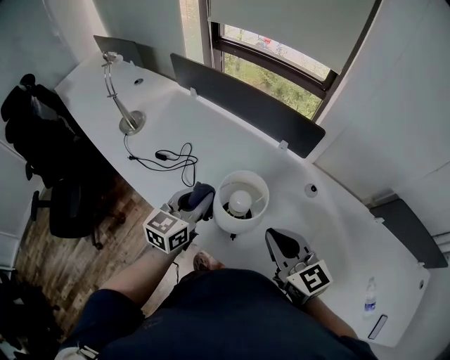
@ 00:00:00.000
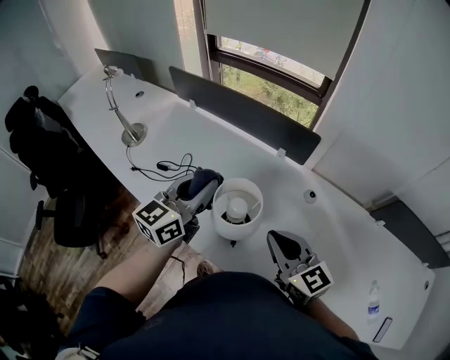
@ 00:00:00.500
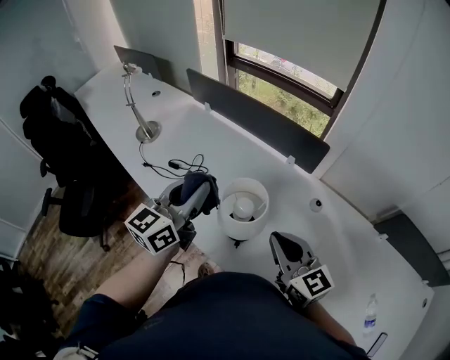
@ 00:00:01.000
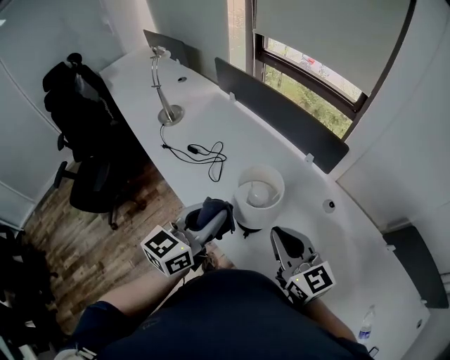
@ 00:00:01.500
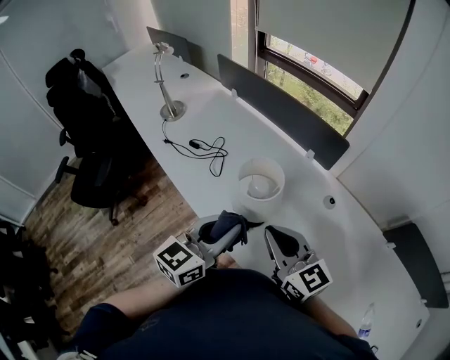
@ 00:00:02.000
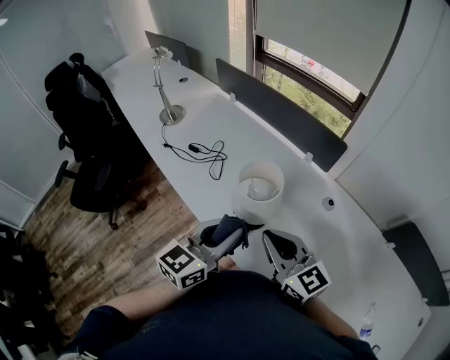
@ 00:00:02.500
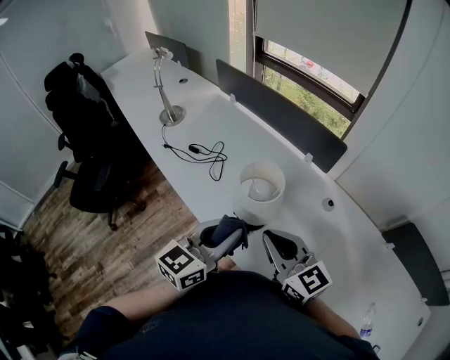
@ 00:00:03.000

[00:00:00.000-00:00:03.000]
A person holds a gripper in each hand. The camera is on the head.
00:00:00.000 to 00:00:01.500: The left gripper heads backward and upward, covering roughly 15 cm.
00:00:01.500 to 00:00:03.000: The left gripper is displaced backward by about 5 cm.

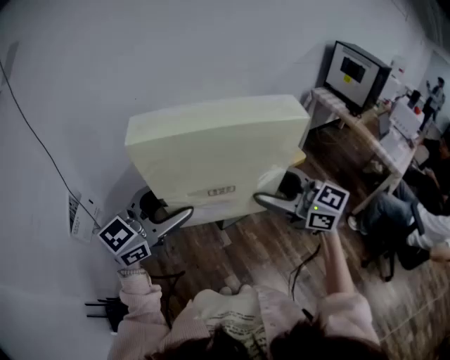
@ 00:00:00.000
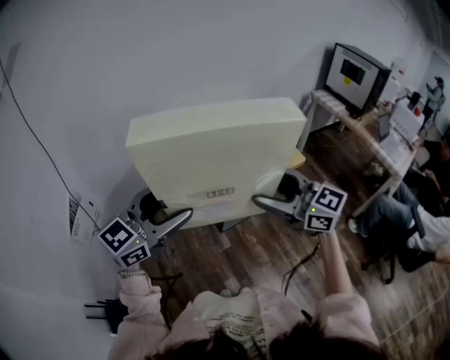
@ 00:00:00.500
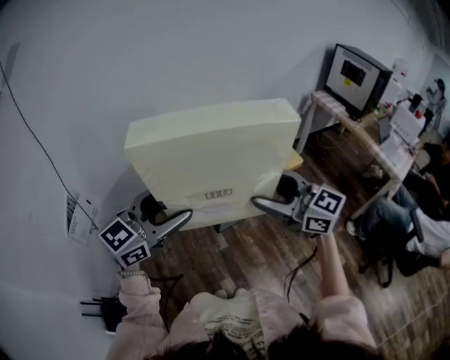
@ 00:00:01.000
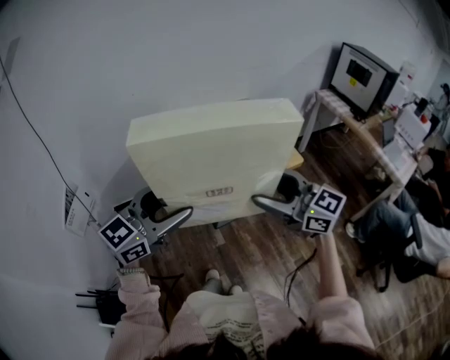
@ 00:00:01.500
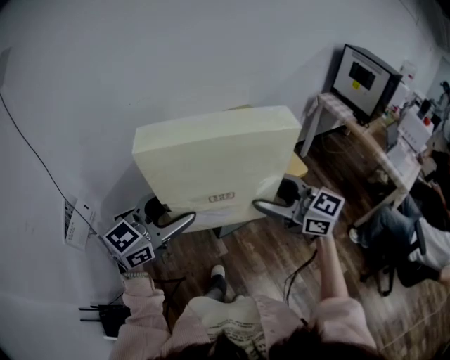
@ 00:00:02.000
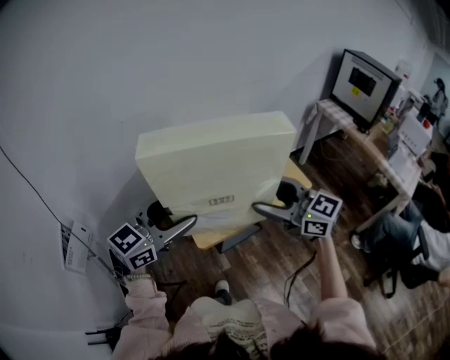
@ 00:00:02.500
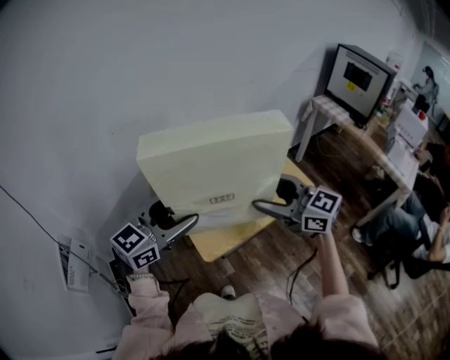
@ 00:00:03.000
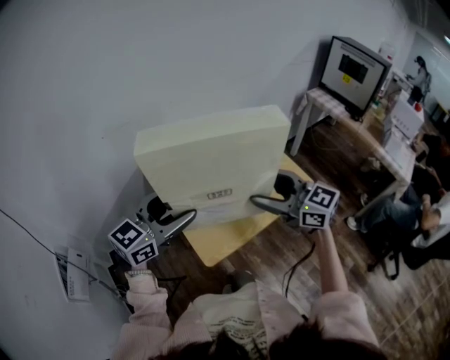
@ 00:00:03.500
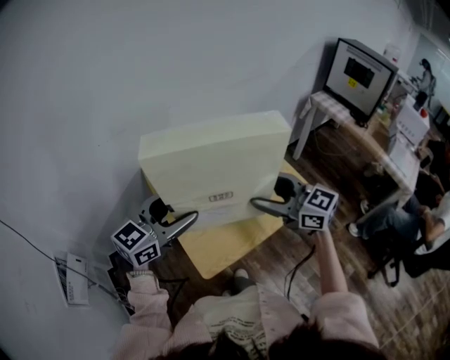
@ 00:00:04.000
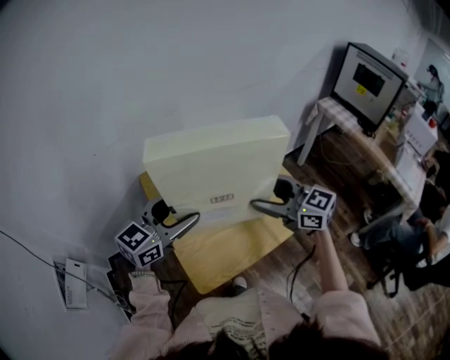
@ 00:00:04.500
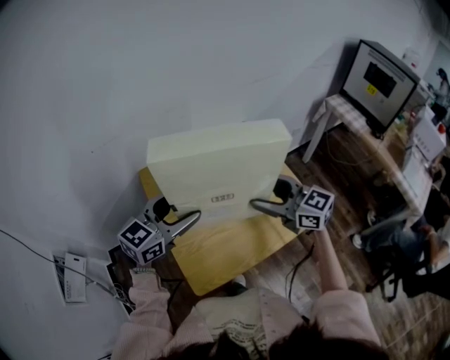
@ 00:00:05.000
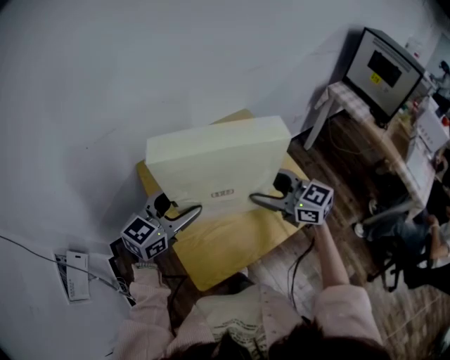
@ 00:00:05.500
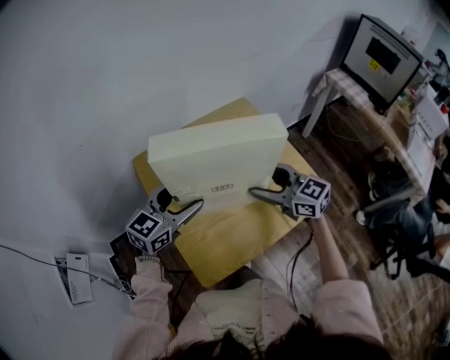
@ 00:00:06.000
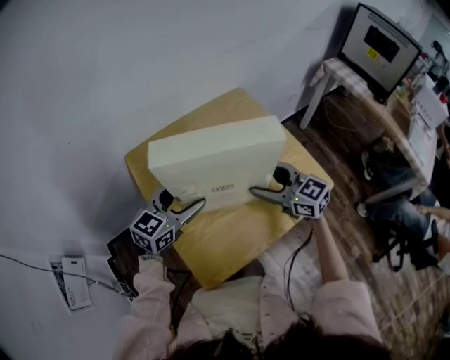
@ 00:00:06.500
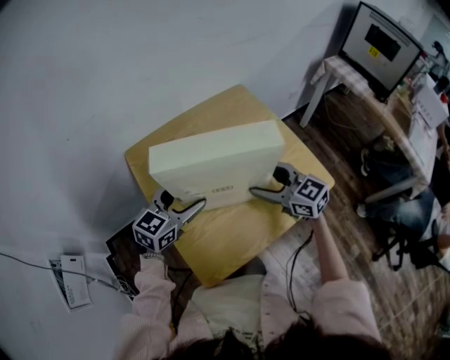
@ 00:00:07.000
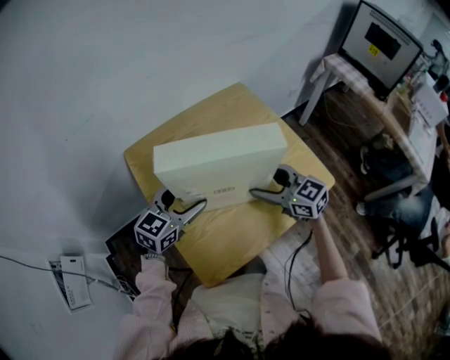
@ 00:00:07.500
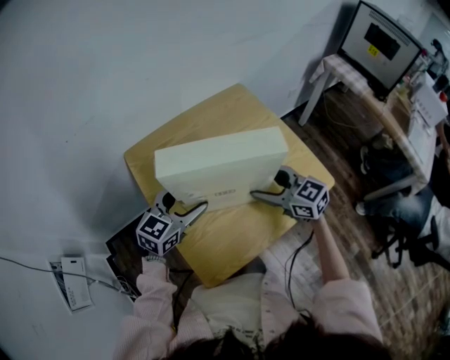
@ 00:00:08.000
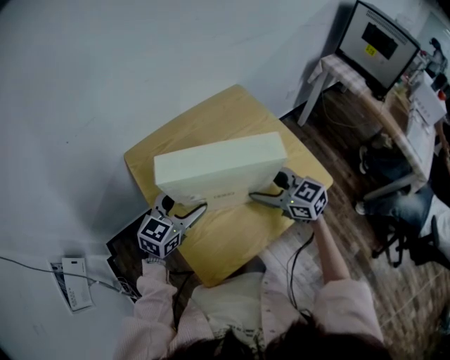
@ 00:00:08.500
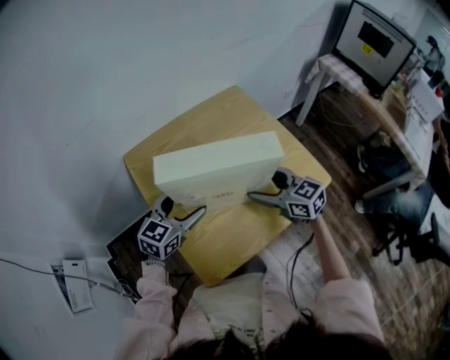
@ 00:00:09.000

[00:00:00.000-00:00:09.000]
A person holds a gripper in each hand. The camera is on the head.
00:00:00.000 to 00:00:02.000: The grippers both shift forward by some 10 cm.
00:00:02.000 to 00:00:04.500: The grippers both shift forward by some 30 cm.
00:00:04.500 to 00:00:07.000: The grippers both shift downward by approximately 15 cm.
00:00:07.000 to 00:00:09.000: There are only small adjustments of the grippers.

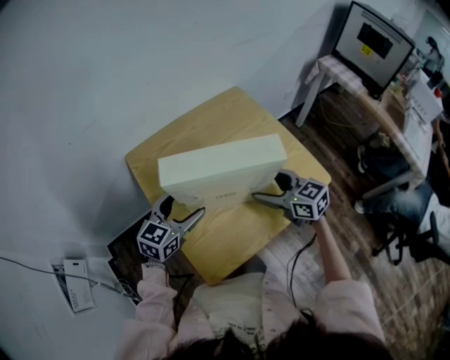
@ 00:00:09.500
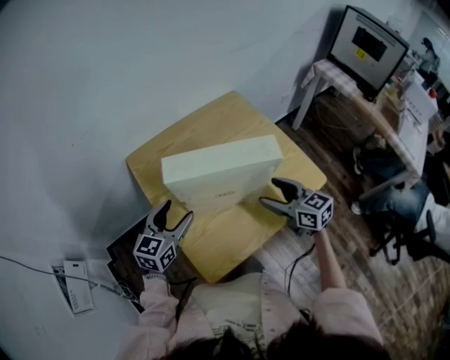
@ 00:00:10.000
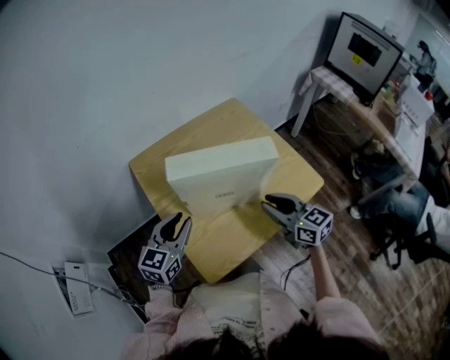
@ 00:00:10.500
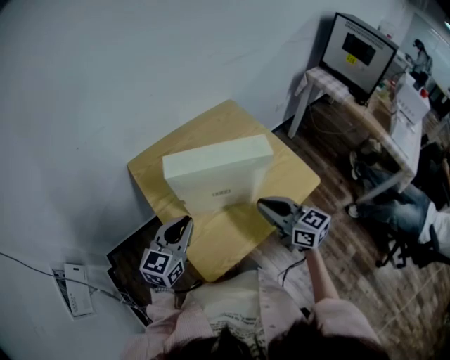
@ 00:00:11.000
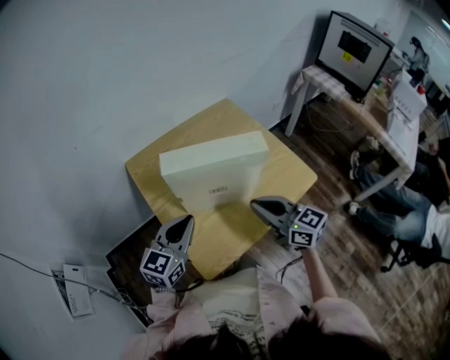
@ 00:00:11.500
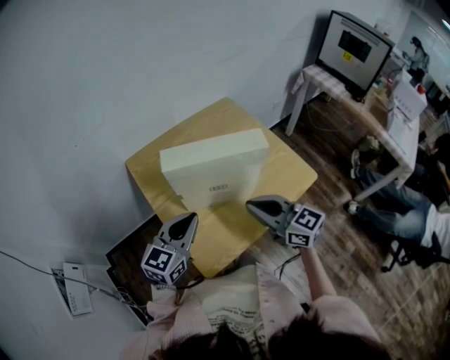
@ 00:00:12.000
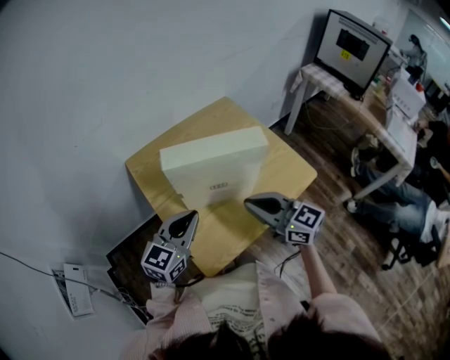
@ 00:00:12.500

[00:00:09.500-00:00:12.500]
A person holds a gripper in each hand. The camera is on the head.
00:00:09.500 to 00:00:11.000: The left gripper travels backward by some 5 cm, and closes up; the right gripper travels backward and upward by roughly 10 cm, and closes.
00:00:11.000 to 00:00:12.500: The right gripper shifts by about 5 cm.

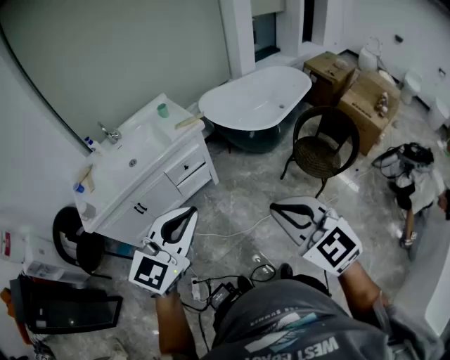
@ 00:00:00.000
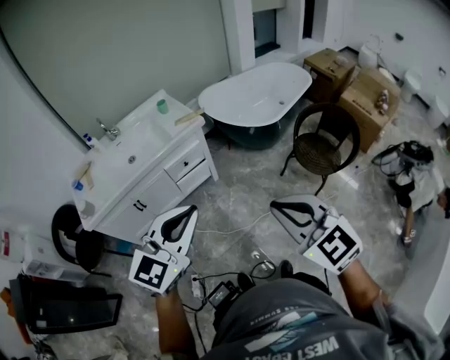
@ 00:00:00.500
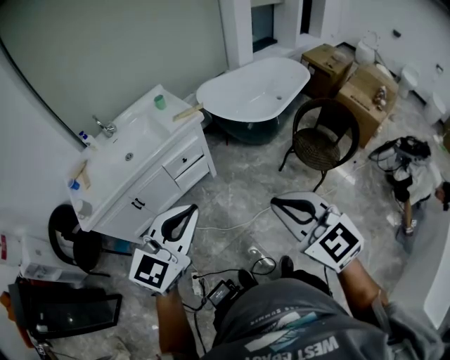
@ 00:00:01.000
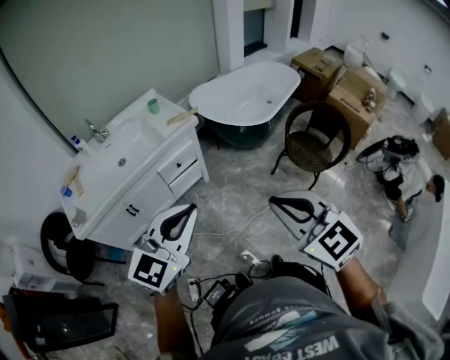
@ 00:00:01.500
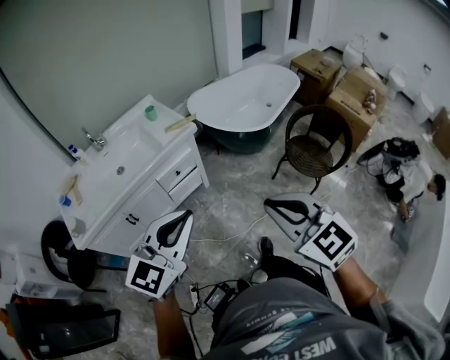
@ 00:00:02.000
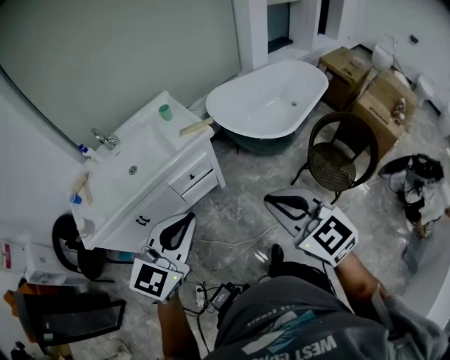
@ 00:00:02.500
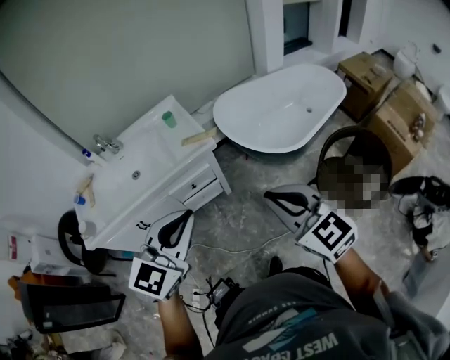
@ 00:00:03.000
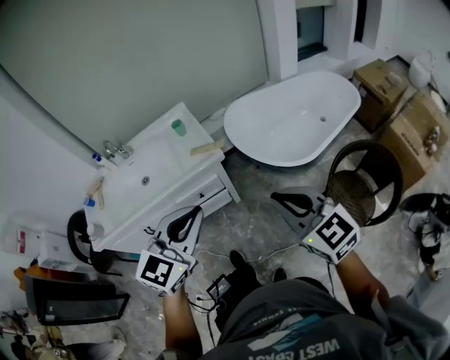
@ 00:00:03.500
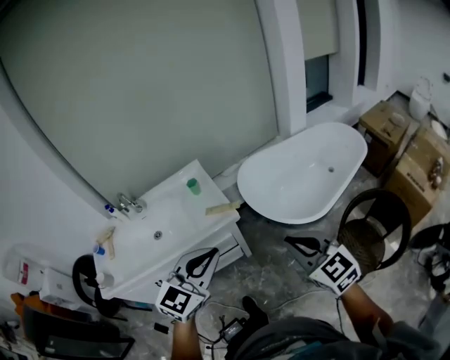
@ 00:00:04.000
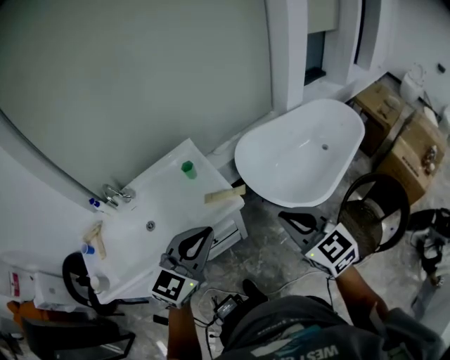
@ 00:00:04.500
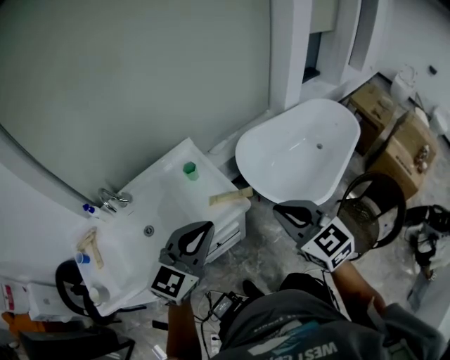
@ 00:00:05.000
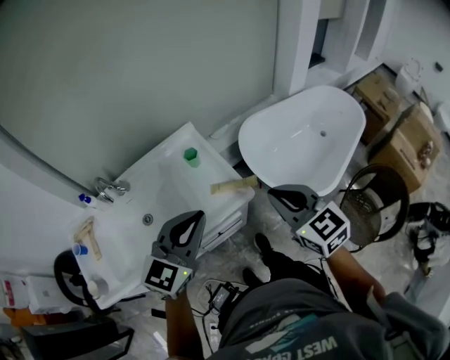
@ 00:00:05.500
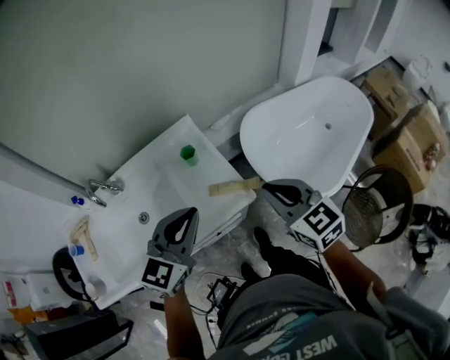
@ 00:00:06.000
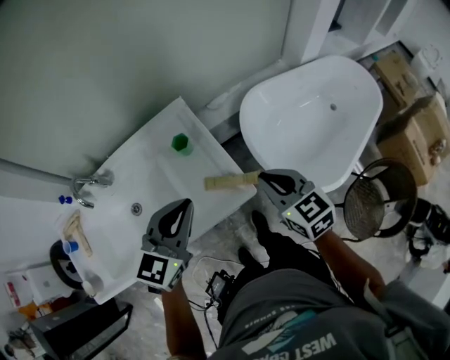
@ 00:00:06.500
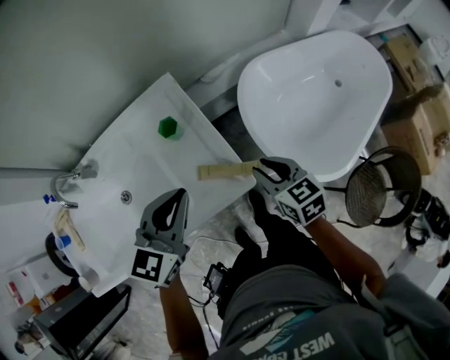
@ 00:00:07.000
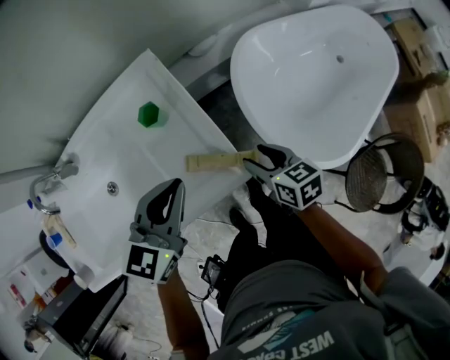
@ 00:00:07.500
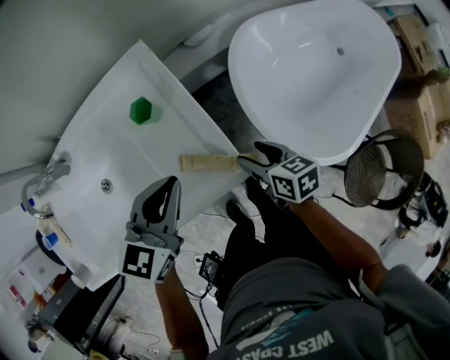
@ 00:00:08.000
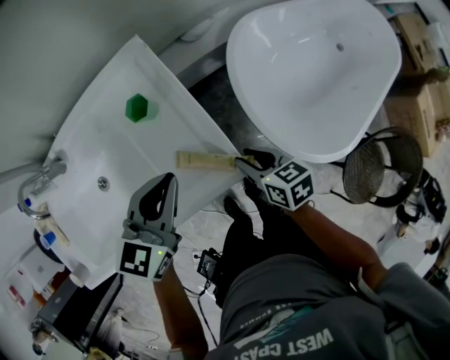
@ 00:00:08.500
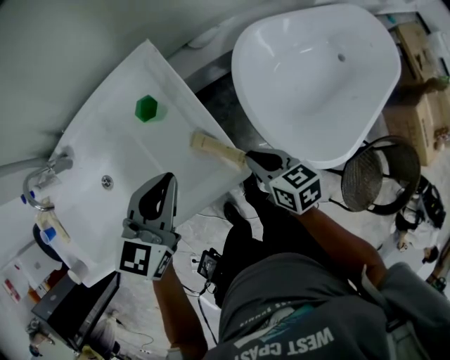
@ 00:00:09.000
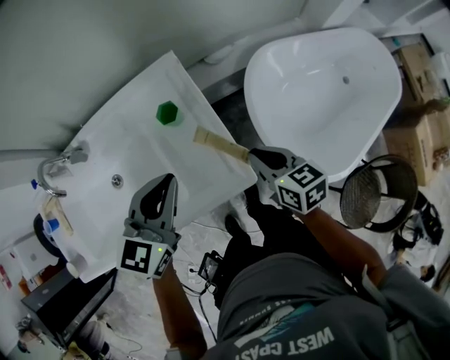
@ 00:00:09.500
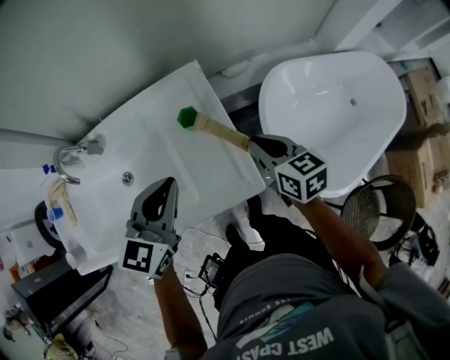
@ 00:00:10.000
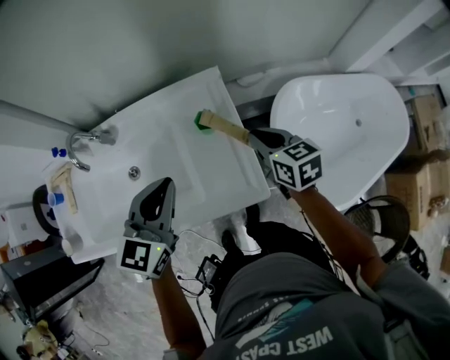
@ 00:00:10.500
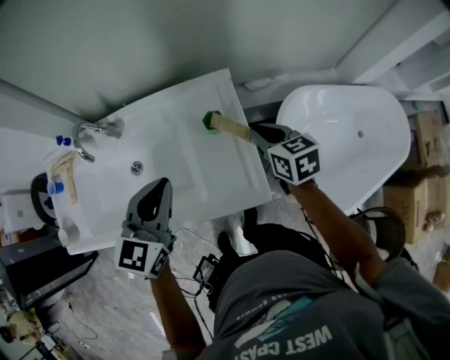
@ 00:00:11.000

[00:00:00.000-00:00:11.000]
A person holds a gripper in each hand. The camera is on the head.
00:00:00.000 to 00:00:02.000: Both grippers move forward and to the left, approximately 10 cm.
00:00:02.000 to 00:00:03.500: The two grippers go about 30 cm forward and to the right.
00:00:03.500 to 00:00:05.500: Both grippers move forward and to the left, some 30 cm.
00:00:05.500 to 00:00:07.500: Both grippers travel together downward and forward, some 30 cm. The left gripper turns by roughly 20 degrees; the right gripper rotates approximately 40 degrees, and opens up.
00:00:07.500 to 00:00:09.000: The right gripper closes.
00:00:09.000 to 00:00:11.000: The right gripper moves forward, upward and to the left, some 20 cm. The left gripper shifts about 15 cm to the left and upward, and changes its angle by approximately 20 degrees.
